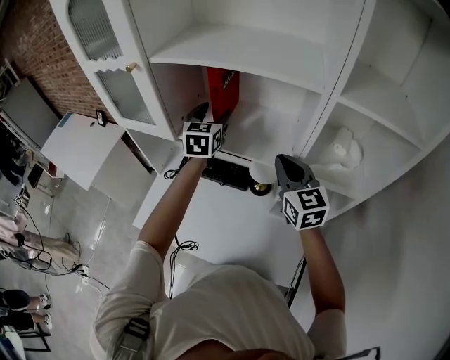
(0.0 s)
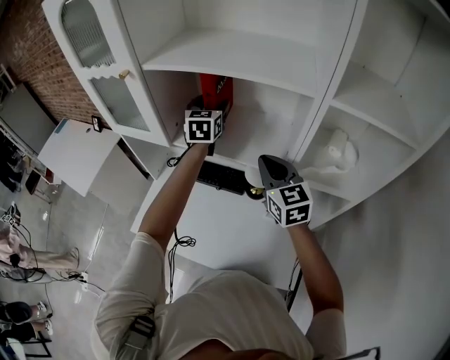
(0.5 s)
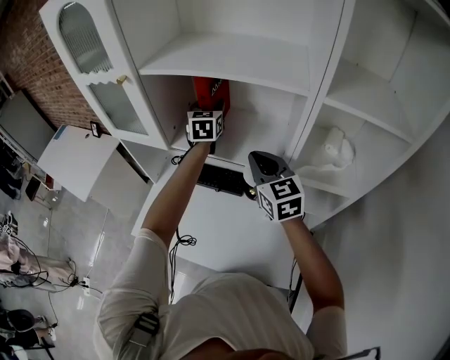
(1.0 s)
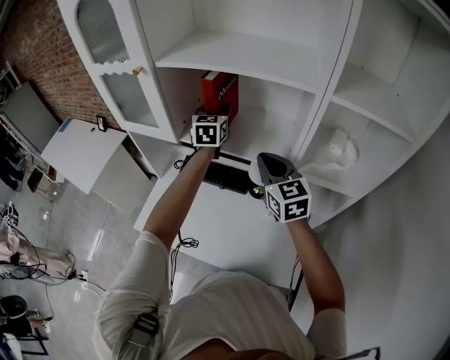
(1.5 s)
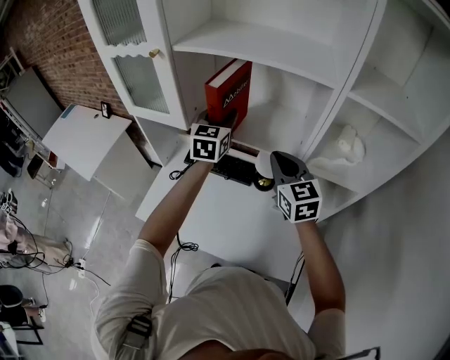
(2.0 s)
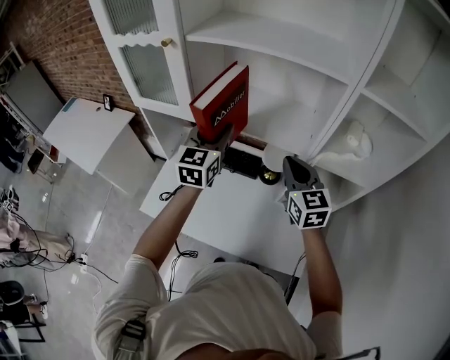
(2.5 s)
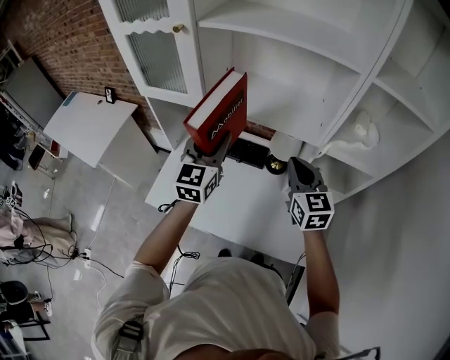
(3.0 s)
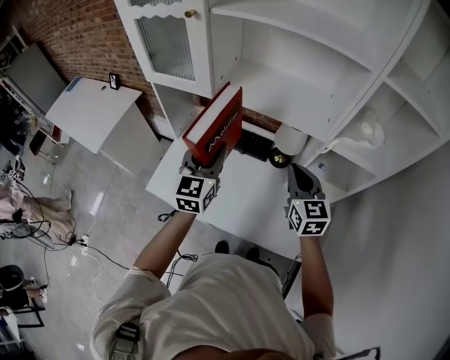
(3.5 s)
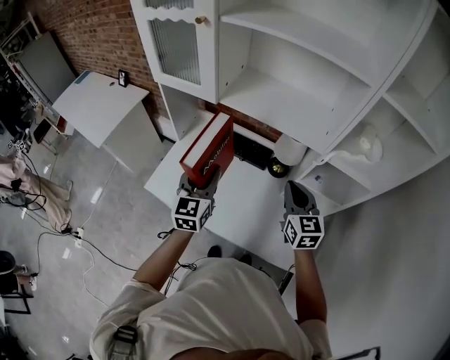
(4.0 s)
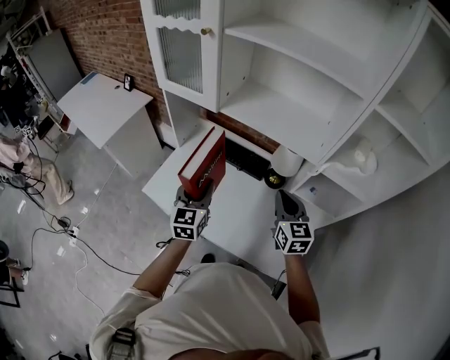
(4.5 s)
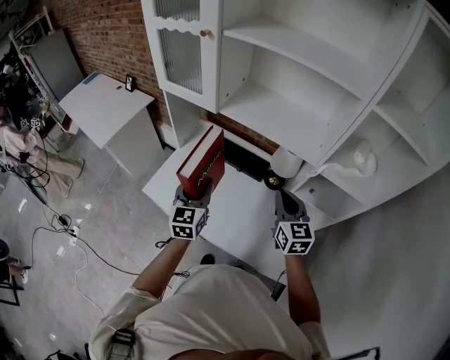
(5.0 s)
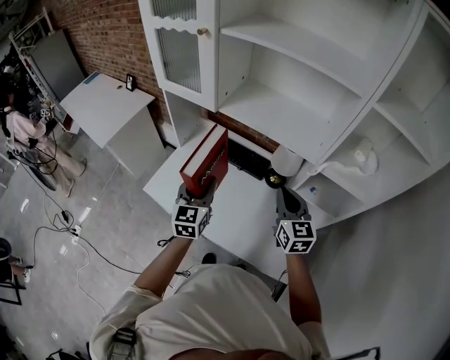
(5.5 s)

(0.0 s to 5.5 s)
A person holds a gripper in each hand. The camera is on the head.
0.0 s - 2.0 s: The right gripper changes place by about 5 cm. The left gripper moves about 5 cm, and closes.
2.0 s - 3.5 s: The left gripper shifts approximately 25 cm backward, to the left and downward. The right gripper is displaced backward and downward by about 10 cm.
3.5 s - 5.5 s: The left gripper travels downward and backward by approximately 10 cm.

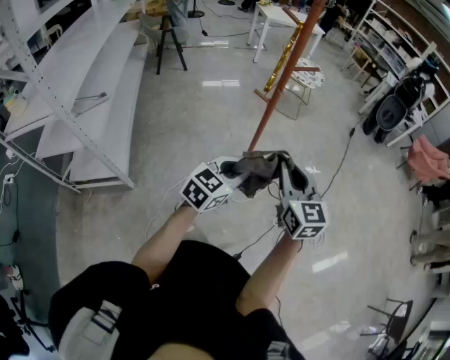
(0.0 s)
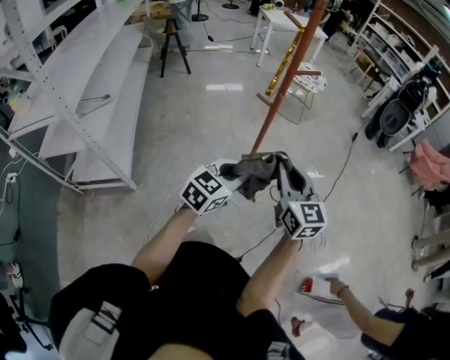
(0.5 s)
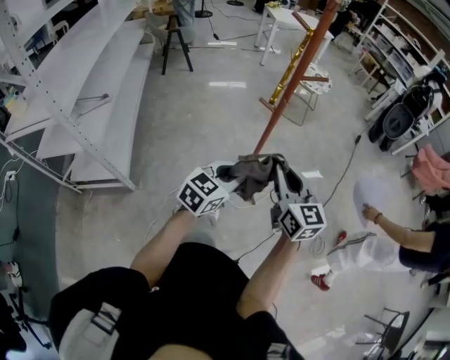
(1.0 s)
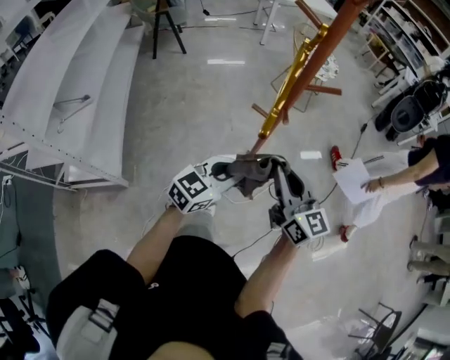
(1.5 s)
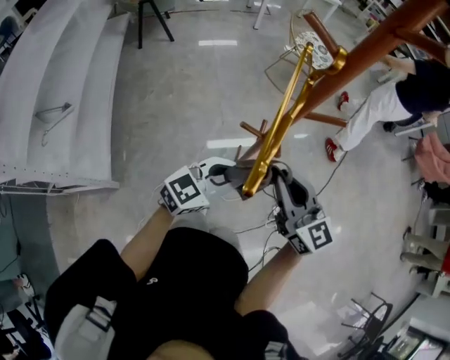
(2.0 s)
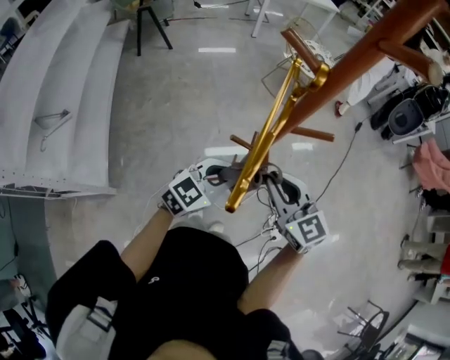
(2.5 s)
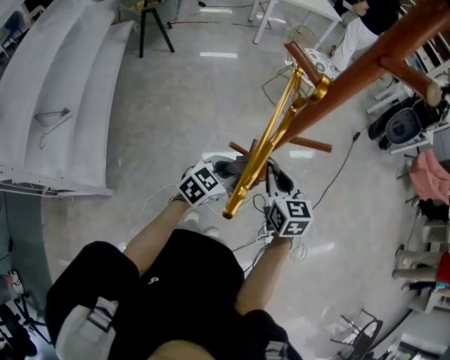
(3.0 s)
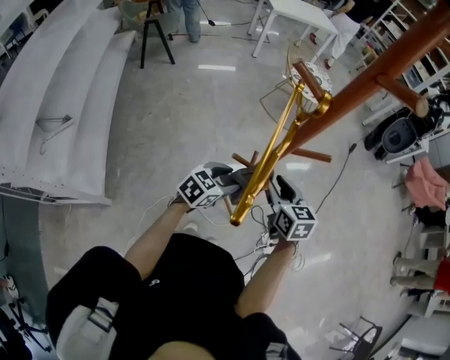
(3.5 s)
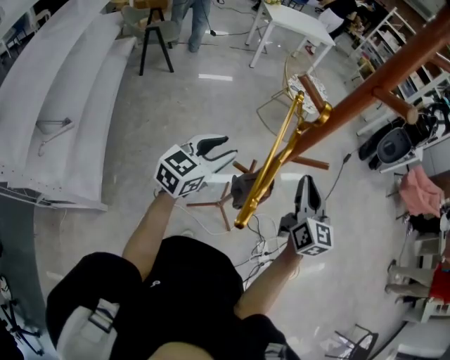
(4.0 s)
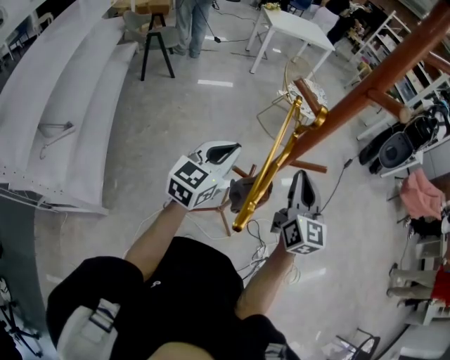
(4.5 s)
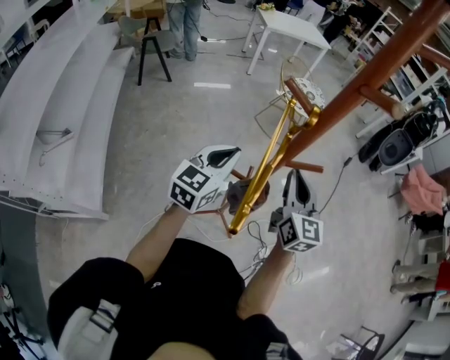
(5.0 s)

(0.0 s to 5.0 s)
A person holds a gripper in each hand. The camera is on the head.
0.0 s - 2.5 s: Both grippers travel together forward, some 30 cm. The right gripper changes its angle by some 20 degrees.
2.5 s - 5.0 s: The left gripper is displaced upward, forward and to the left by some 15 cm, rotates approximately 30 degrees, and opens, then closes once more. Meanwhile the right gripper travels forward and upward by approximately 10 cm, swivels about 40 degrees, and opens and closes again.

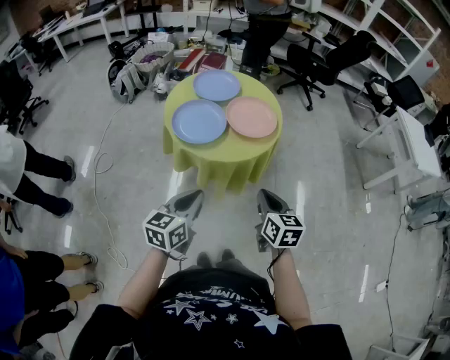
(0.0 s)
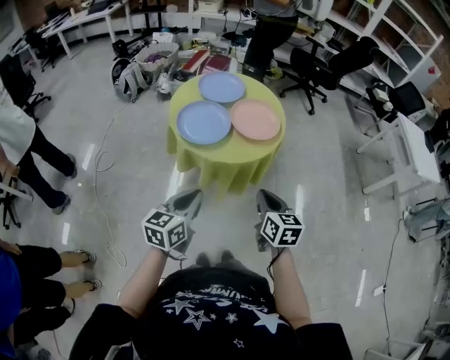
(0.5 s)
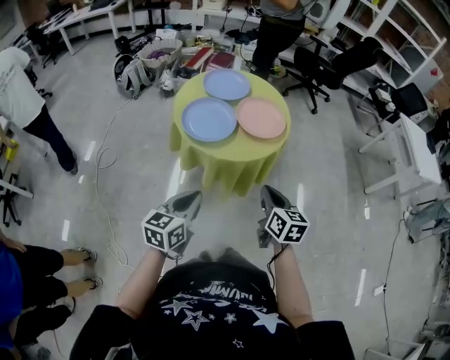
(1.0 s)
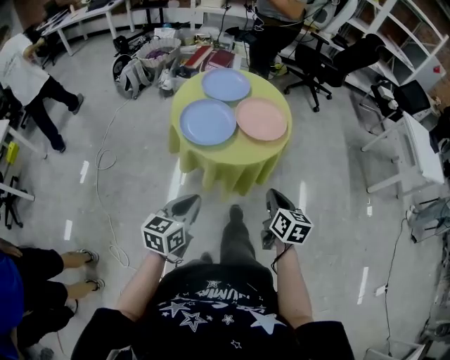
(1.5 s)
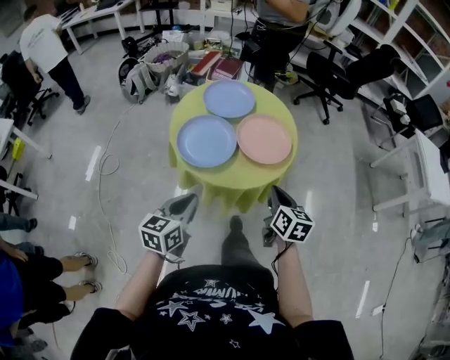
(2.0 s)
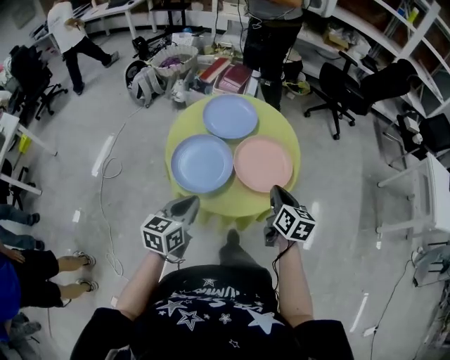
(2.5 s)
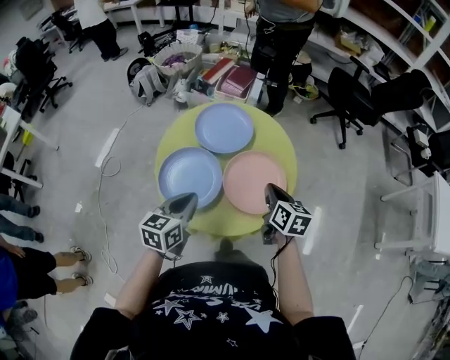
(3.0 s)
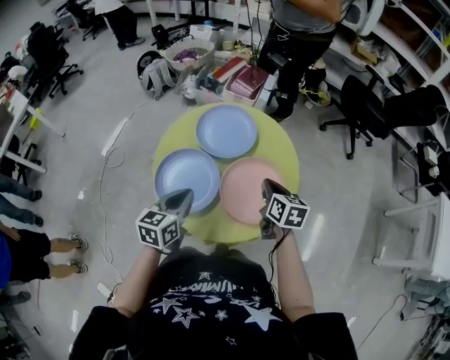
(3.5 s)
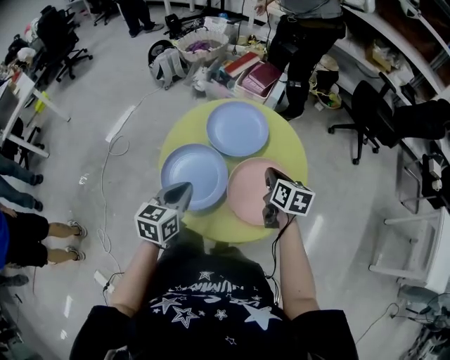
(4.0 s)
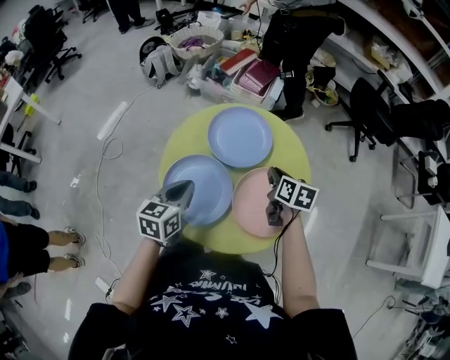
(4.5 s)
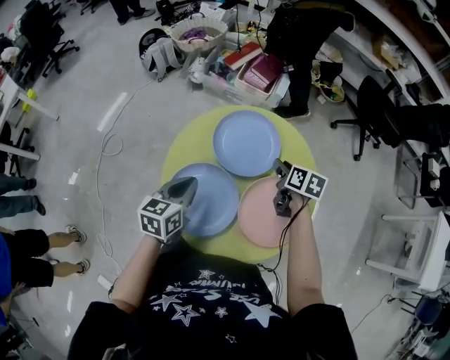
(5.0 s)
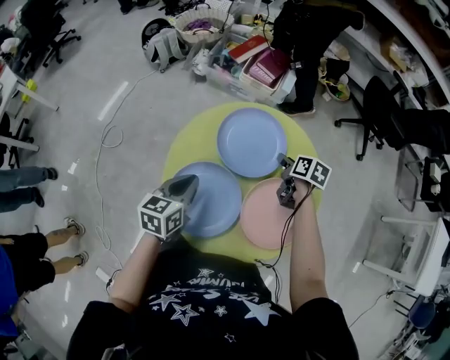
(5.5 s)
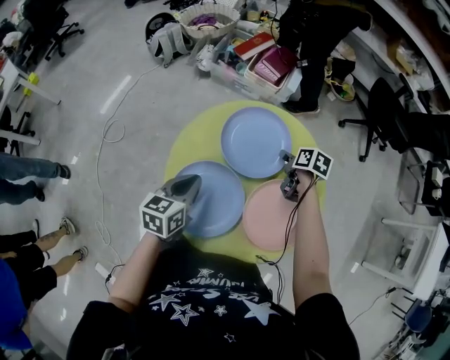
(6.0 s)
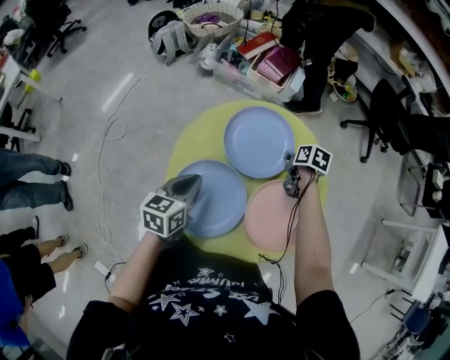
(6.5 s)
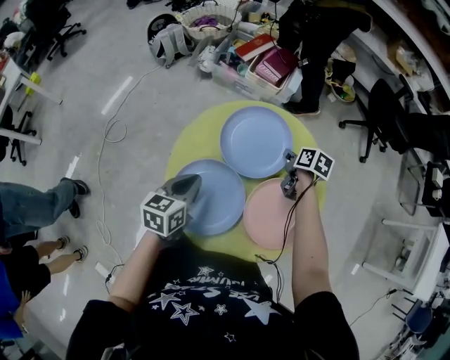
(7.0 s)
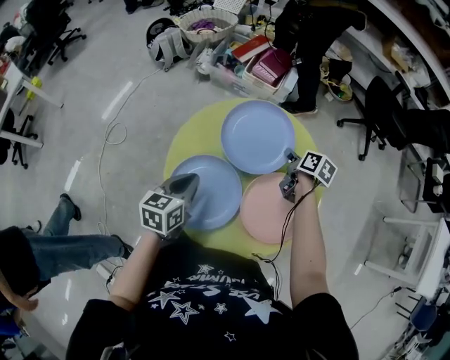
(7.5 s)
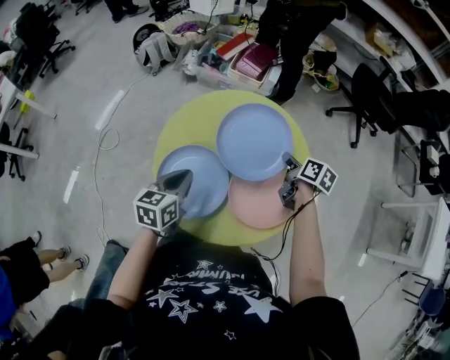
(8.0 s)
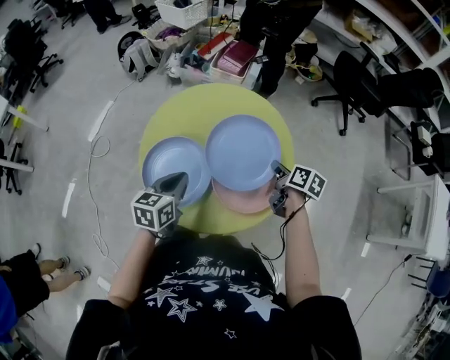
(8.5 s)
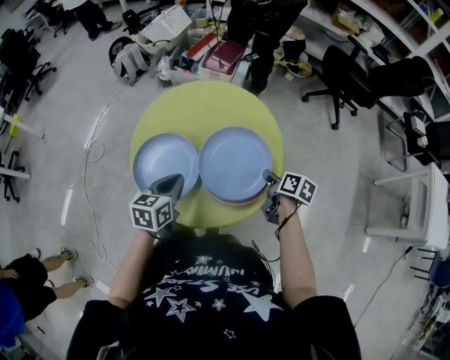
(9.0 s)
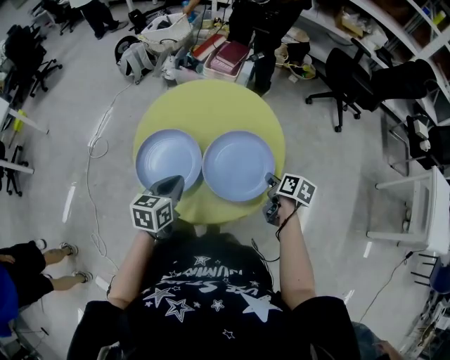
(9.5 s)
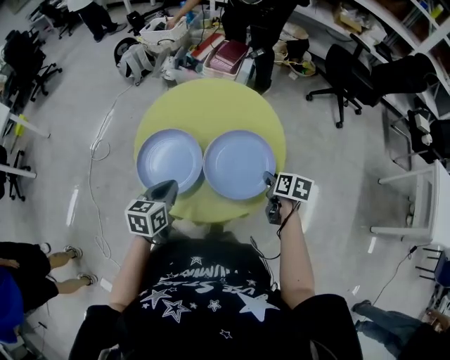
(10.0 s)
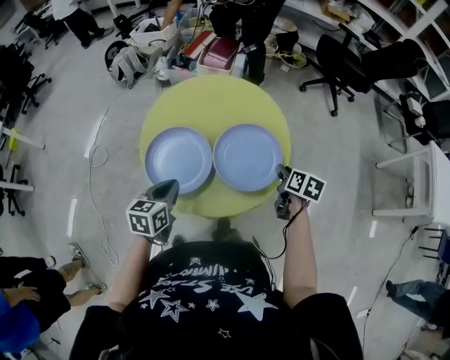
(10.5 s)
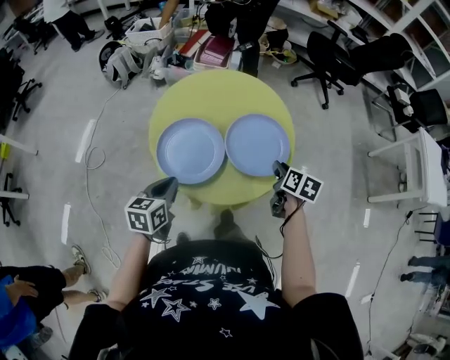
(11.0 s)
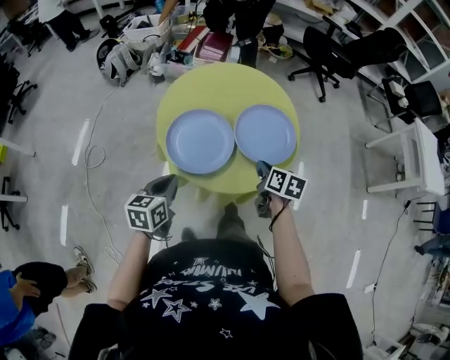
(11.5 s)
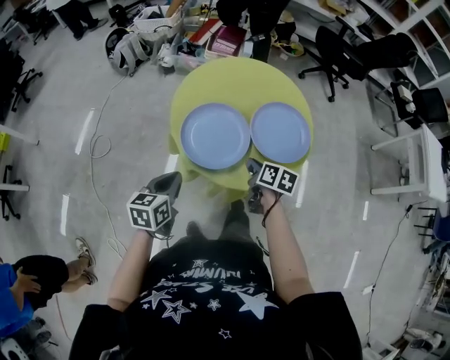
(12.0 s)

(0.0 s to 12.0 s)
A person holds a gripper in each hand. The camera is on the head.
0.0 s - 2.0 s: The left gripper moves forward, roughly 10 cm; the right gripper heads forward, covering some 15 cm.
2.0 s - 4.0 s: Both grippers travel together forward, about 25 cm. The right gripper swivels approximately 20 degrees.
4.0 s - 6.0 s: The left gripper is displaced forward by some 10 cm, while the right gripper moves forward and downward, approximately 20 cm, turns by approximately 30 degrees, and opens its fingers.
6.0 s - 8.0 s: The left gripper ends up some 5 cm from where it was; the right gripper is displaced backward, upward and to the right by some 10 cm, and closes.
8.0 s - 10.0 s: The right gripper goes roughly 15 cm backward. Meanwhile the left gripper moves backward, some 10 cm.
10.0 s - 12.0 s: Both grippers travel together to the left and backward, approximately 20 cm.

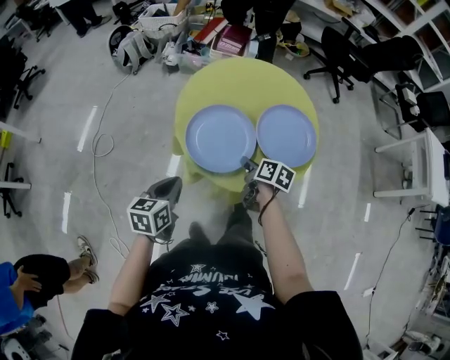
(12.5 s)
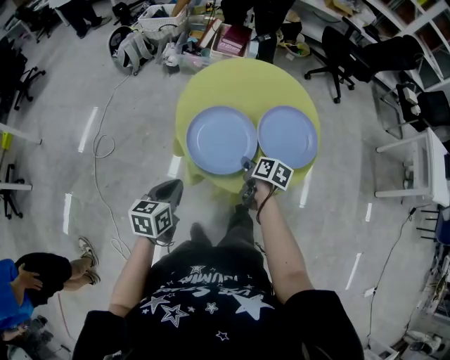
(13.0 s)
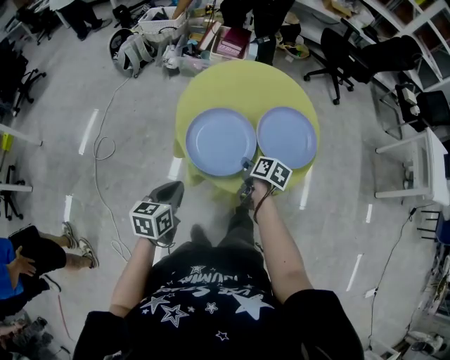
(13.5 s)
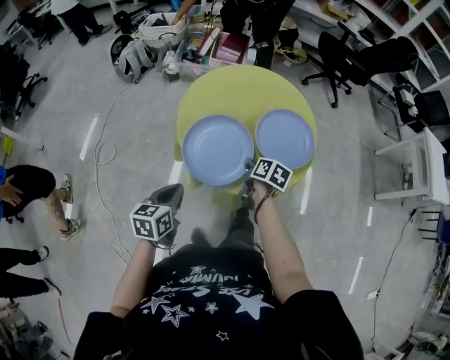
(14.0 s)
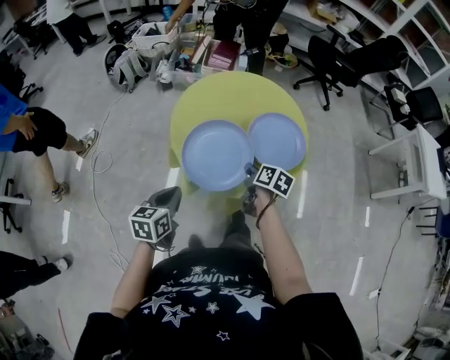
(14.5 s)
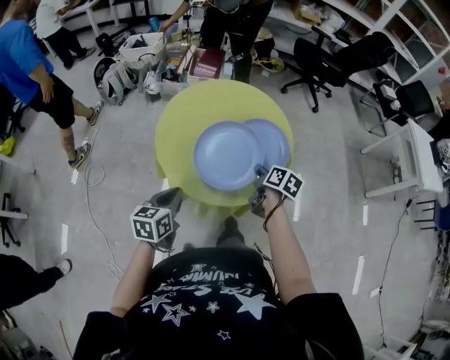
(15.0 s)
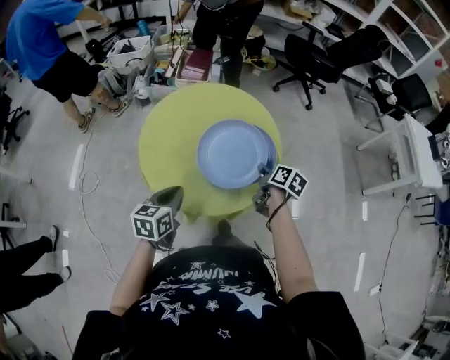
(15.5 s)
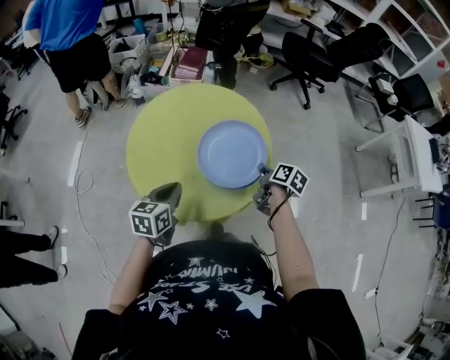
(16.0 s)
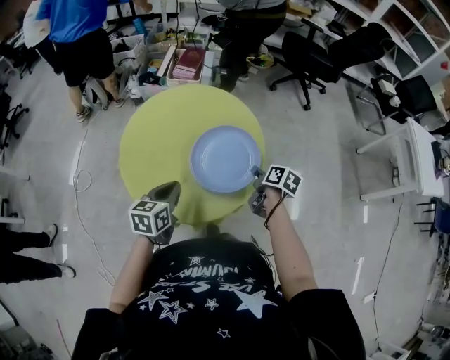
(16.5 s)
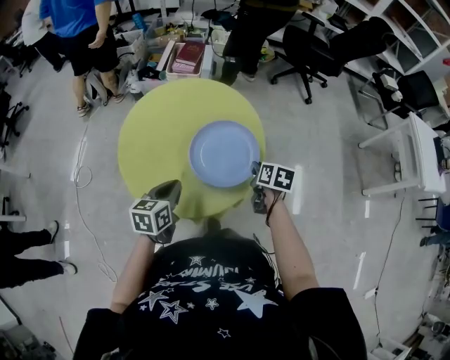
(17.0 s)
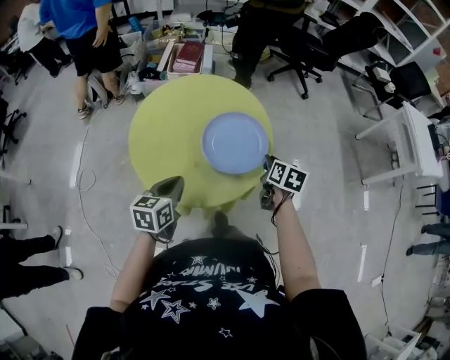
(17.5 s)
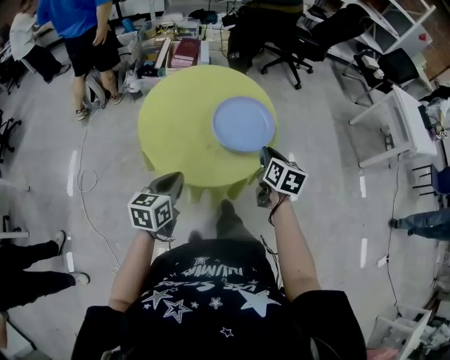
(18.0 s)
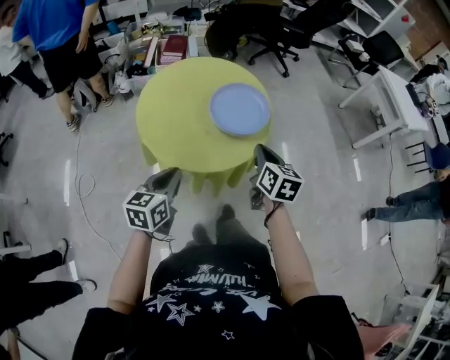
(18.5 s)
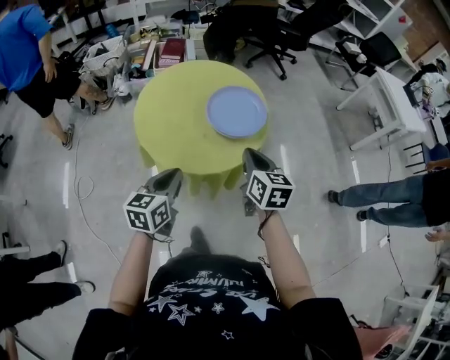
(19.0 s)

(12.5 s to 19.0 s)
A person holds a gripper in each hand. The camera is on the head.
12.5 s - 14.5 s: The grippers move only a little.
14.5 s - 17.0 s: Both grippers travel together to the right and forward, roughly 25 cm.
17.0 s - 19.0 s: The left gripper shifts some 15 cm backward, upward and to the left, while the right gripper goes some 30 cm backward, upward and to the left, and rotates some 30 degrees.
